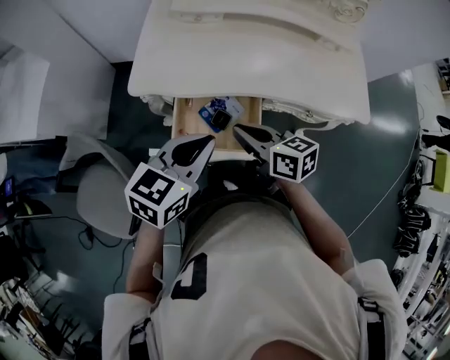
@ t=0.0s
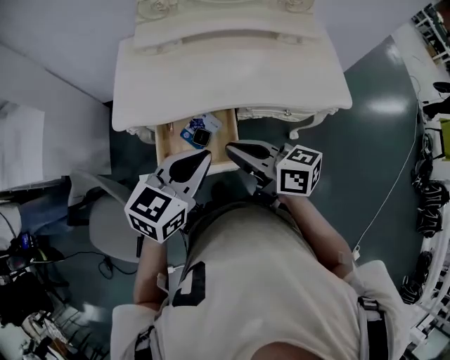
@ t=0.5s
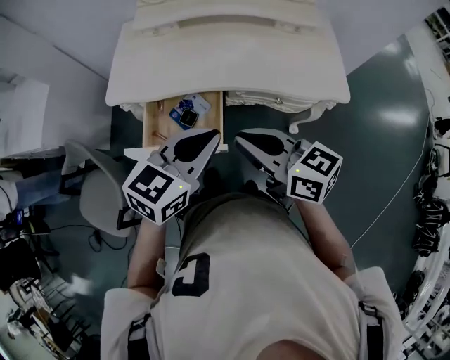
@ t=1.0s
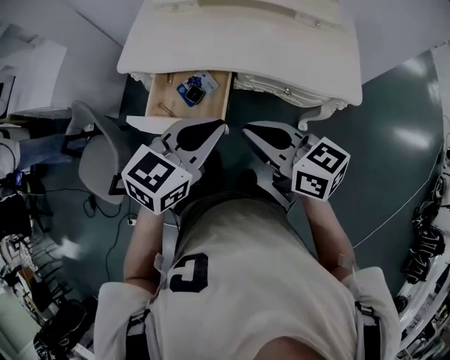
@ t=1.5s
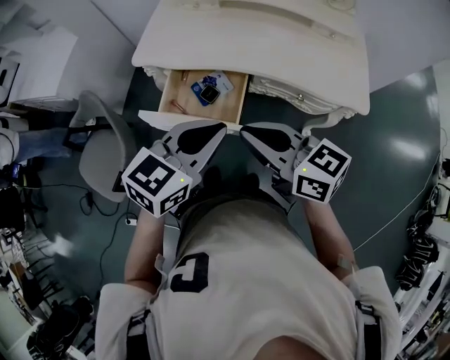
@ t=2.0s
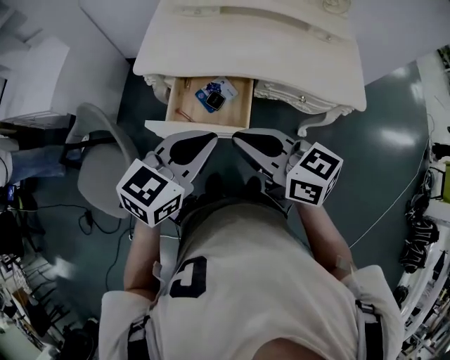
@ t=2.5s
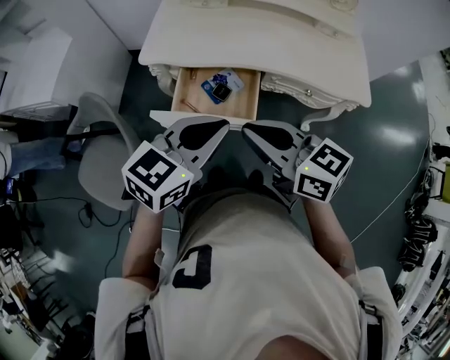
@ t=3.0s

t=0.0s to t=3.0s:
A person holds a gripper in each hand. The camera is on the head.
t=0.0s to t=1.5s: The right gripper shifts some 25 cm to the right, backward and upward; the left gripper moves to the right and backward, about 20 cm.
t=1.5s to t=3.0s: Both grippers move to the left, roughly 15 cm.

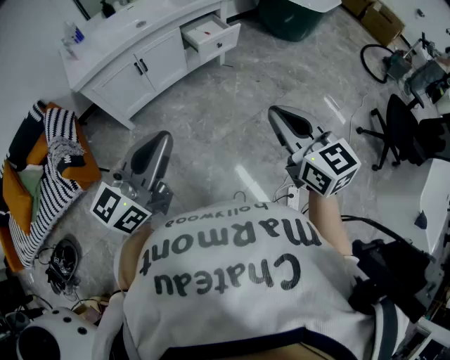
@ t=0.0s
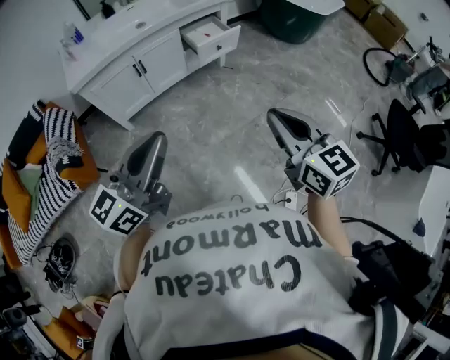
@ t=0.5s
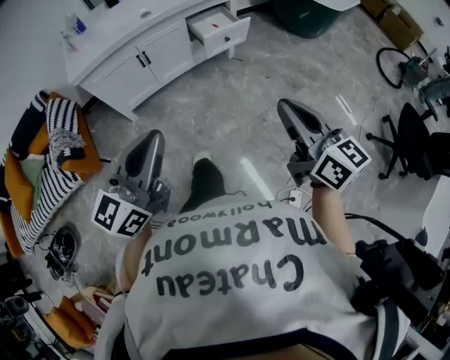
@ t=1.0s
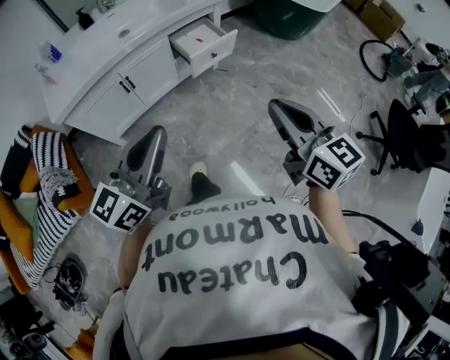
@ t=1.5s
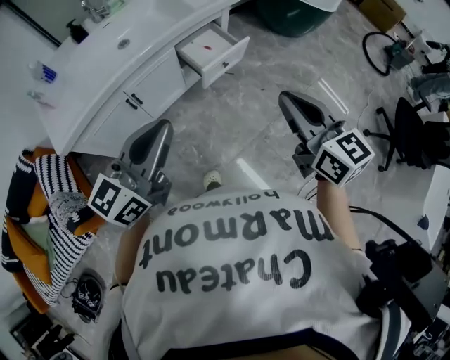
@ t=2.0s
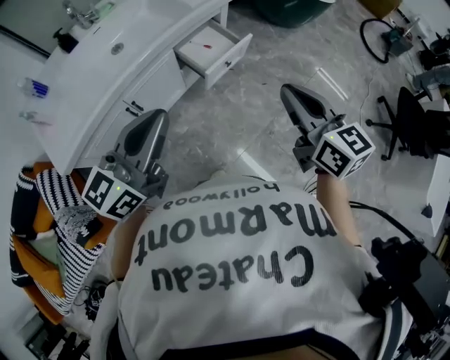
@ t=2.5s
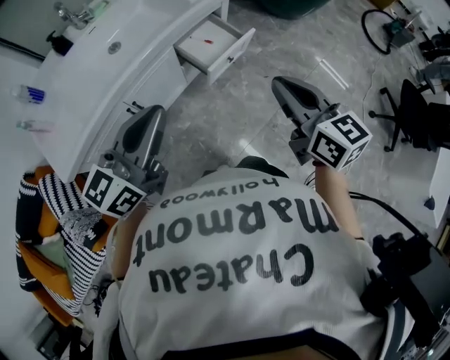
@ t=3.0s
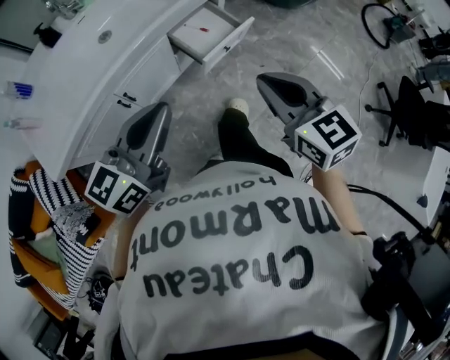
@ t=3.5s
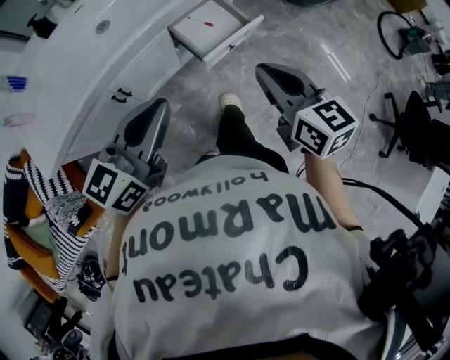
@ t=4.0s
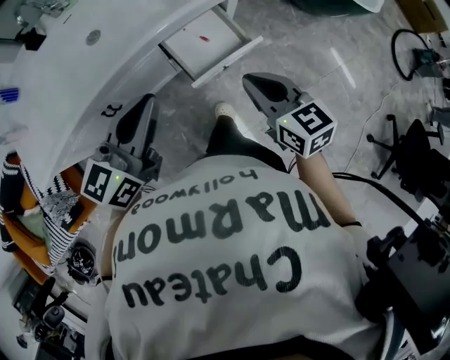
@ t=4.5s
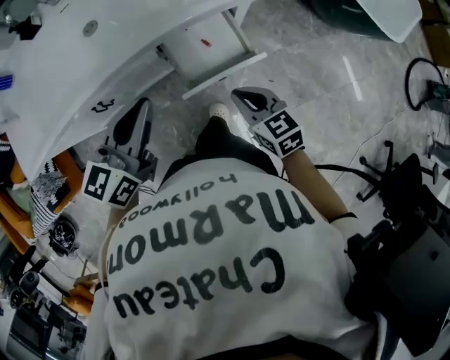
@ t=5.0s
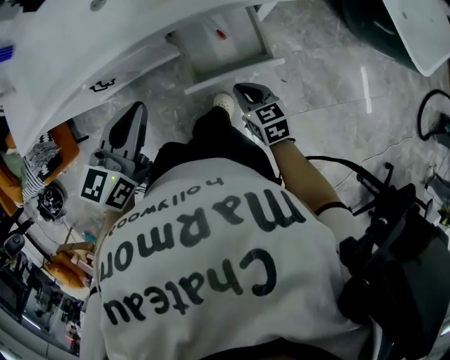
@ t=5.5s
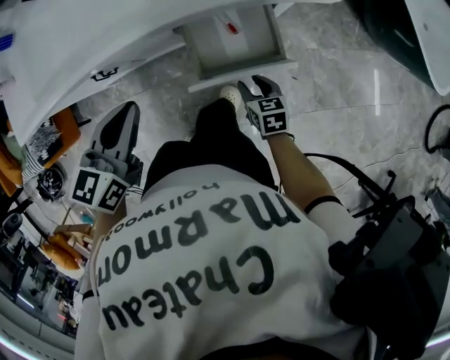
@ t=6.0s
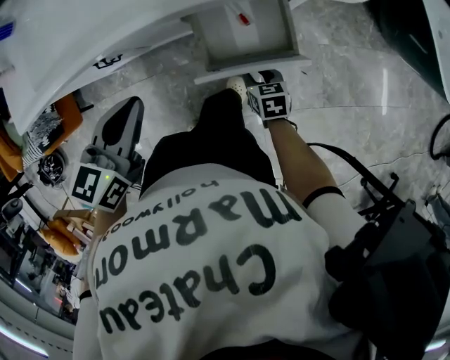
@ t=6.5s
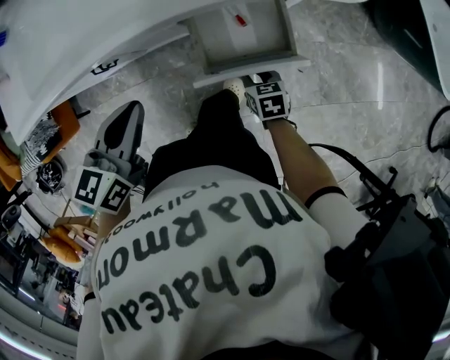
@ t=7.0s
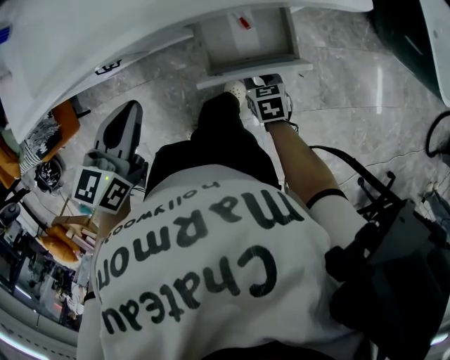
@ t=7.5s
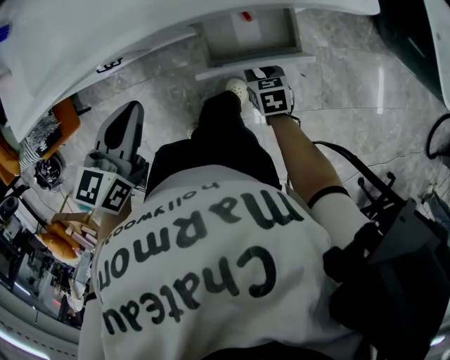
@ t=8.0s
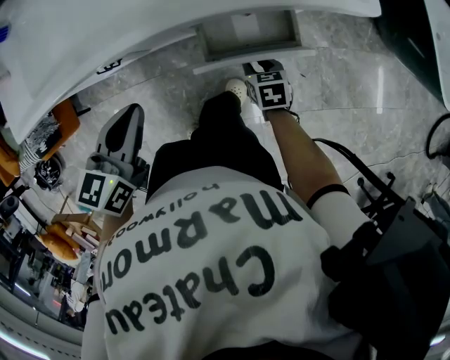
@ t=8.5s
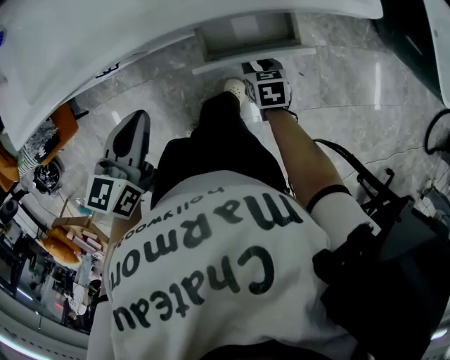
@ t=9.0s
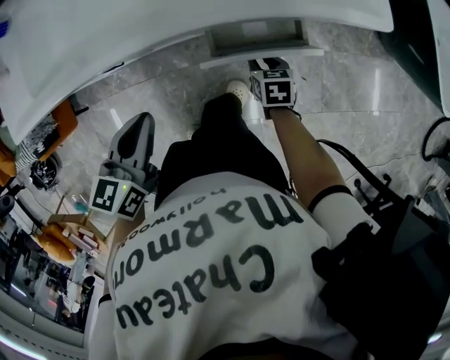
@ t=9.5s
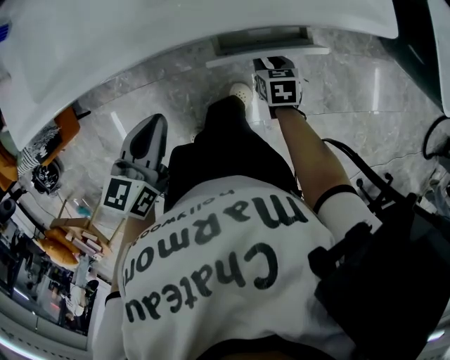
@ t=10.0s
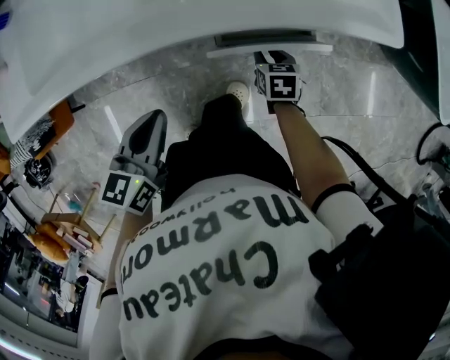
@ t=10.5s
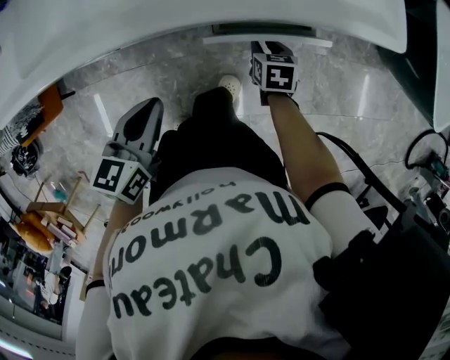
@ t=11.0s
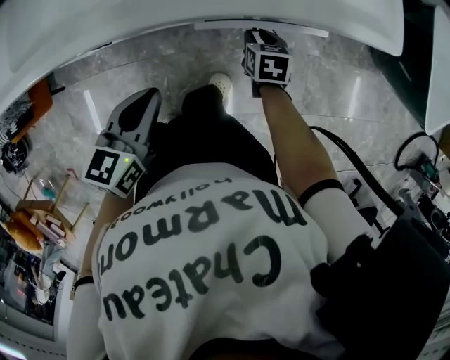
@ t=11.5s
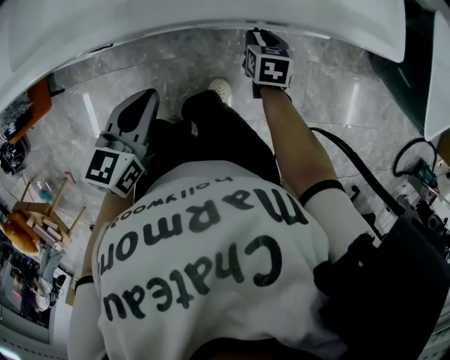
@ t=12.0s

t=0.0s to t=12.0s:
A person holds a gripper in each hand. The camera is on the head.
t=0.0s to t=2.0s: The two grippers go approximately 30 cm forward.
t=2.0s to t=4.0s: The left gripper heads forward and downward, covering some 20 cm; the right gripper moves forward, downward and to the left, some 20 cm.
t=4.0s to t=6.0s: The left gripper moves some 20 cm, and swivels approximately 40 degrees. The right gripper moves downward, some 35 cm, rotates approximately 40 degrees, and opens.
t=6.0s to t=8.0s: The right gripper changes place by approximately 5 cm.
t=8.0s to t=10.0s: The right gripper shifts approximately 5 cm forward.
t=10.0s to t=12.0s: The right gripper shifts approximately 5 cm forward.

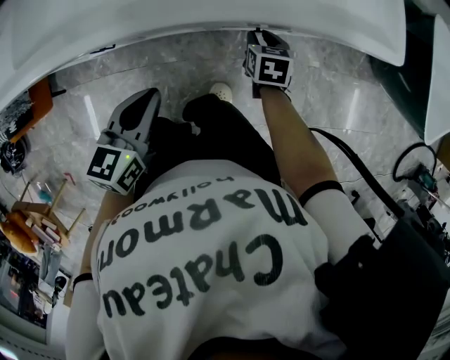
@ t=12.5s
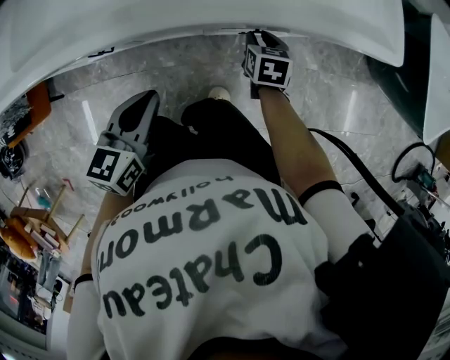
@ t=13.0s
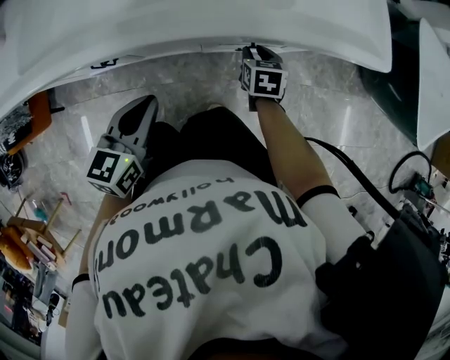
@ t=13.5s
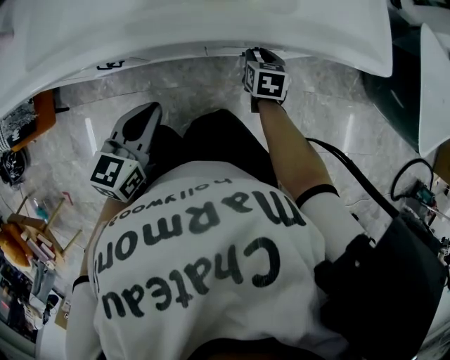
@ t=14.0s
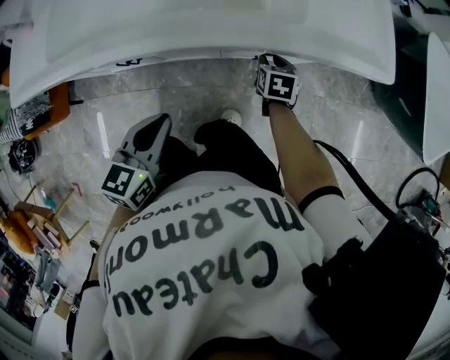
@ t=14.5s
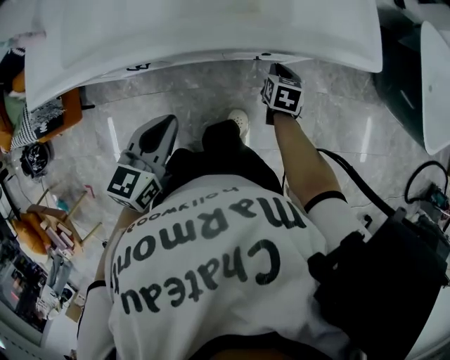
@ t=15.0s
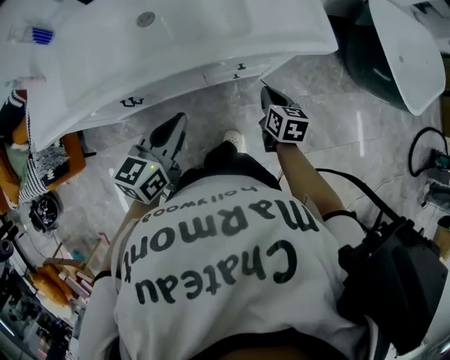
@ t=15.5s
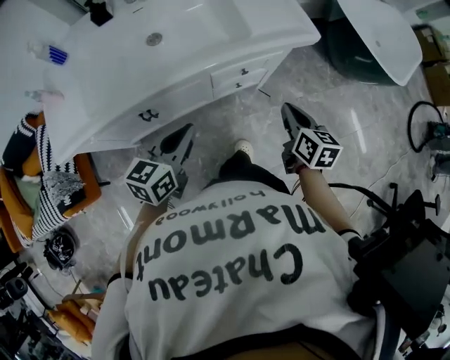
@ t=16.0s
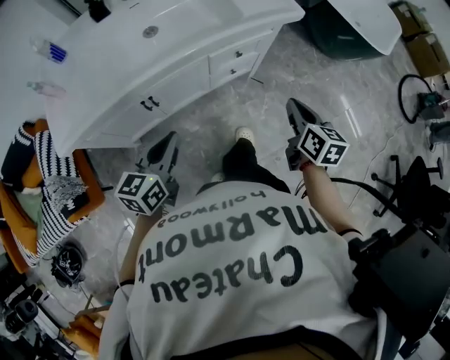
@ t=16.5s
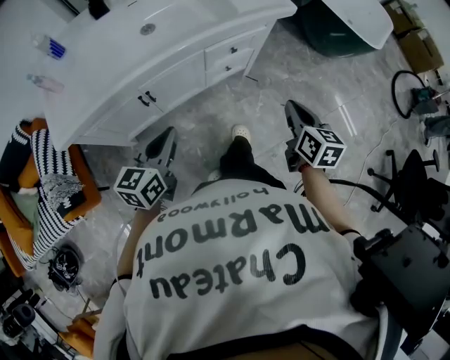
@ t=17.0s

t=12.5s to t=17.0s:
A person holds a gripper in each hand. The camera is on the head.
t=12.5s to t=14.5s: There are only small adjustments of the grippers.
t=14.5s to t=17.0s: The left gripper moves backward, upward and to the left, some 20 cm, and changes its angle by approximately 20 degrees, while the right gripper shifts about 40 cm backward and upward, turns by roughly 40 degrees, and closes up.

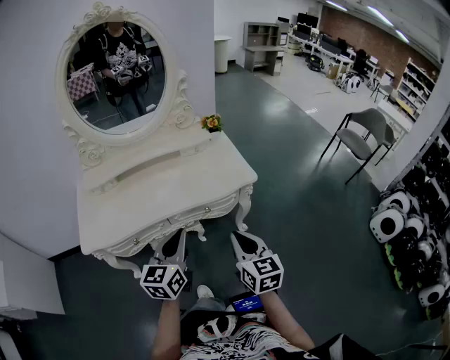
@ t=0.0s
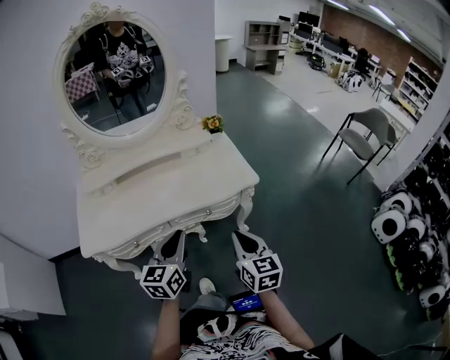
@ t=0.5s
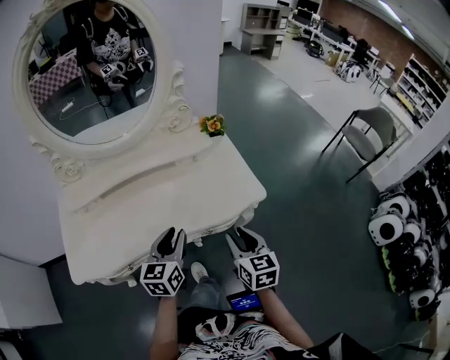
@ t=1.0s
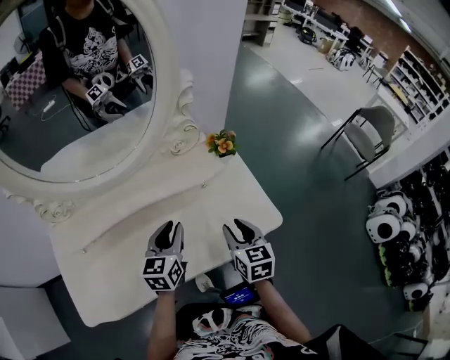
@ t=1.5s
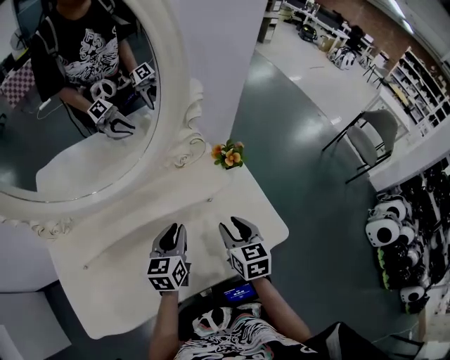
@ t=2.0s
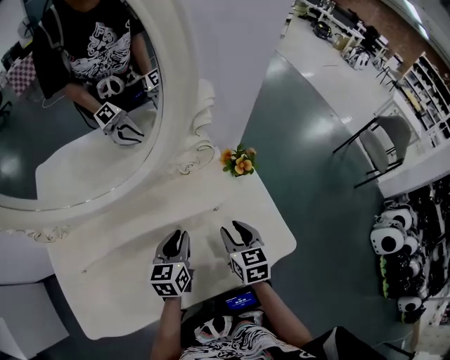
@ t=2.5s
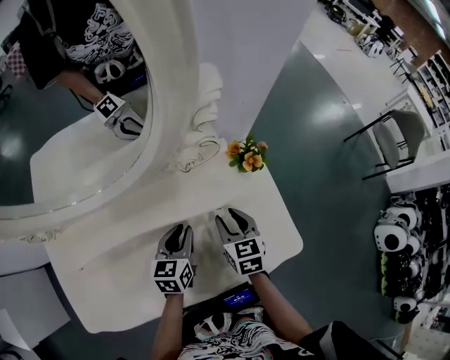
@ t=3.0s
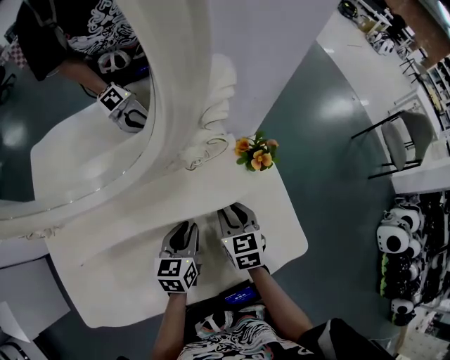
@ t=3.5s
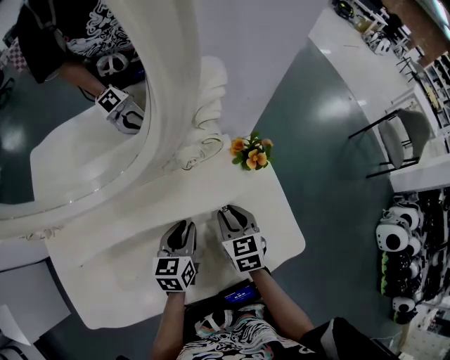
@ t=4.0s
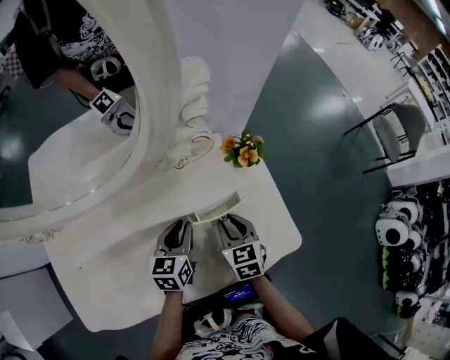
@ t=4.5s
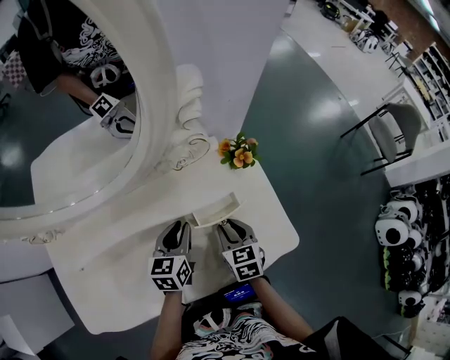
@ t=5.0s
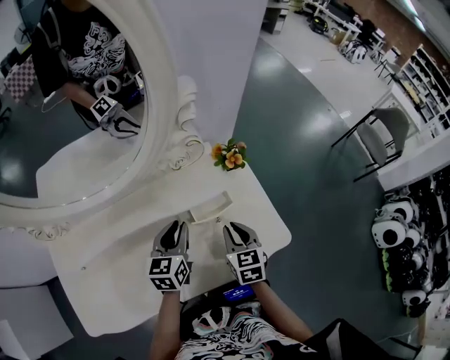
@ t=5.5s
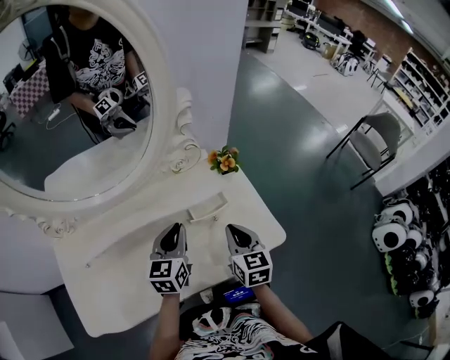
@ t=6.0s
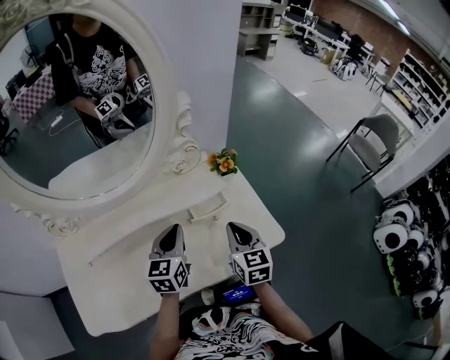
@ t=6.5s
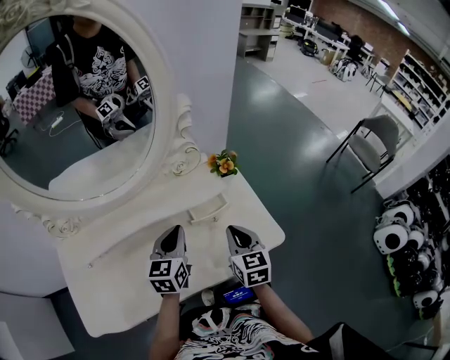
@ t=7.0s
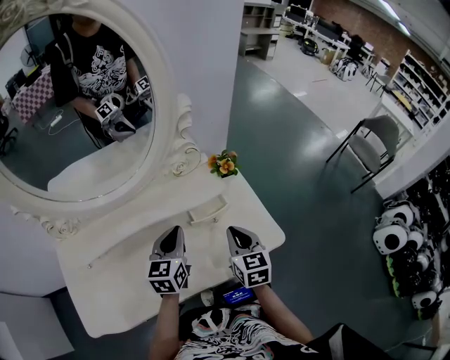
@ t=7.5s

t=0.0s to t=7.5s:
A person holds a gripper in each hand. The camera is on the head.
t=0.0s to t=2.0s: Both grippers are carried forward, approximately 40 cm. The right gripper opens up.
t=2.0s to t=4.0s: The right gripper moves downward and forward, about 10 cm, while the left gripper shifts some 10 cm downward.
t=4.0s to t=5.5s: The left gripper travels upward by some 5 cm, while the right gripper travels backward by some 5 cm.
t=5.5s to t=7.5s: The two grippers go about 5 cm upward.
